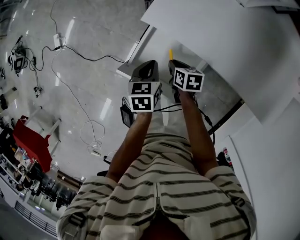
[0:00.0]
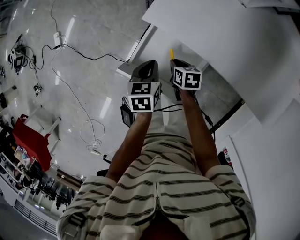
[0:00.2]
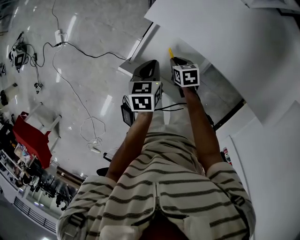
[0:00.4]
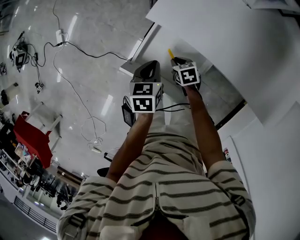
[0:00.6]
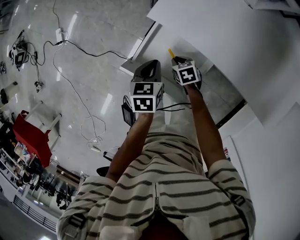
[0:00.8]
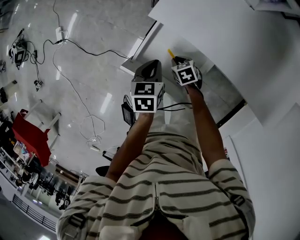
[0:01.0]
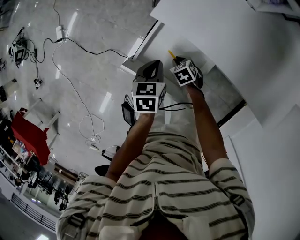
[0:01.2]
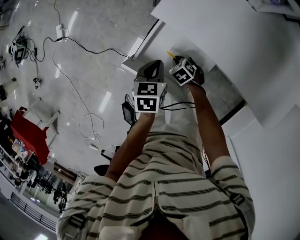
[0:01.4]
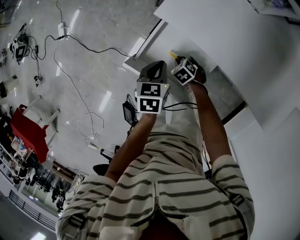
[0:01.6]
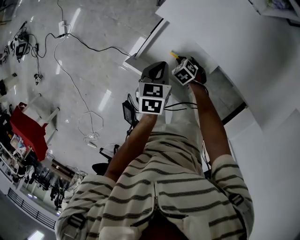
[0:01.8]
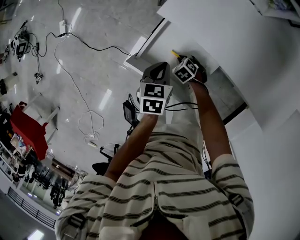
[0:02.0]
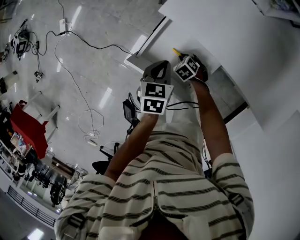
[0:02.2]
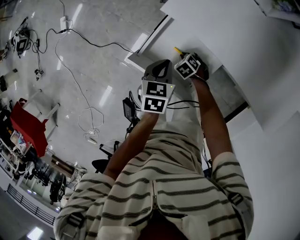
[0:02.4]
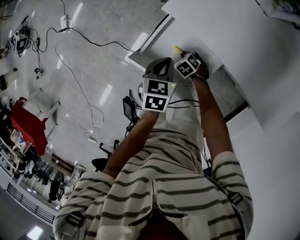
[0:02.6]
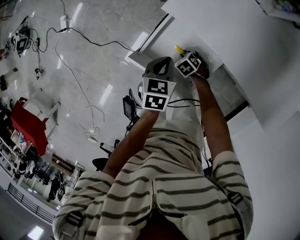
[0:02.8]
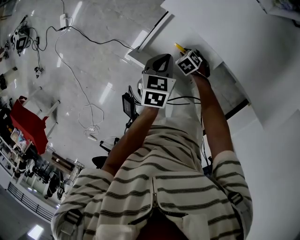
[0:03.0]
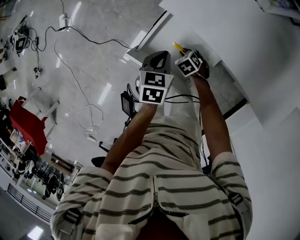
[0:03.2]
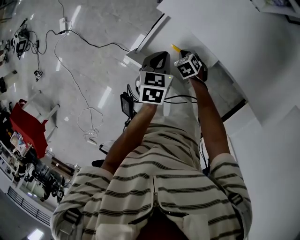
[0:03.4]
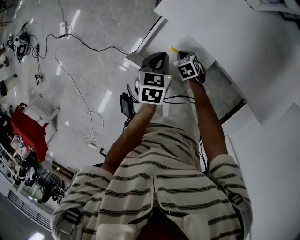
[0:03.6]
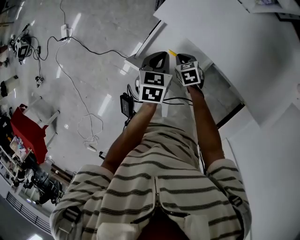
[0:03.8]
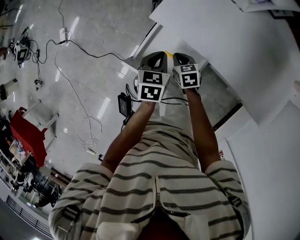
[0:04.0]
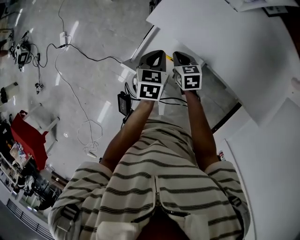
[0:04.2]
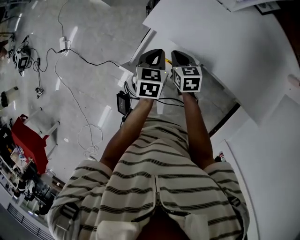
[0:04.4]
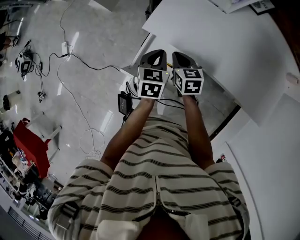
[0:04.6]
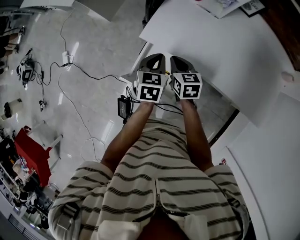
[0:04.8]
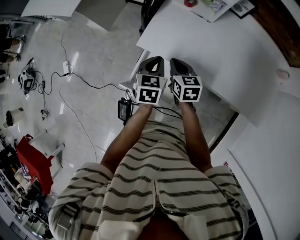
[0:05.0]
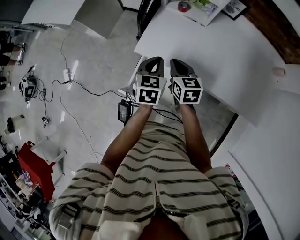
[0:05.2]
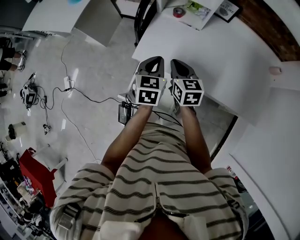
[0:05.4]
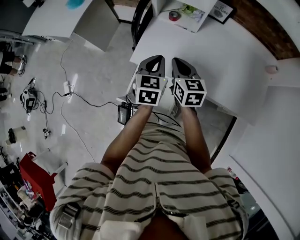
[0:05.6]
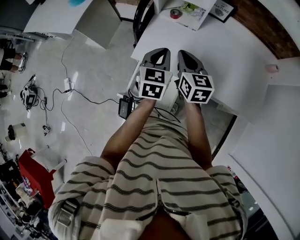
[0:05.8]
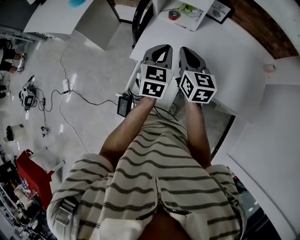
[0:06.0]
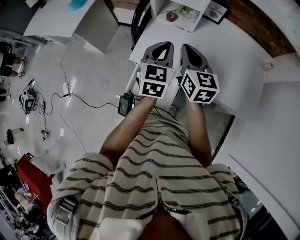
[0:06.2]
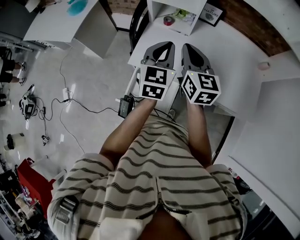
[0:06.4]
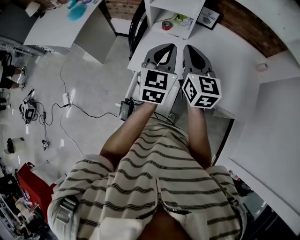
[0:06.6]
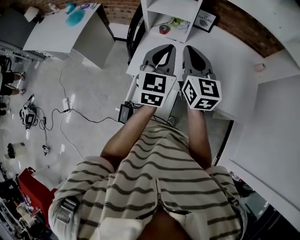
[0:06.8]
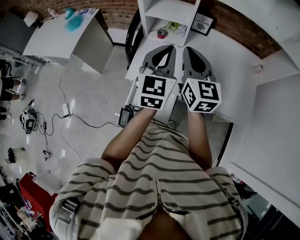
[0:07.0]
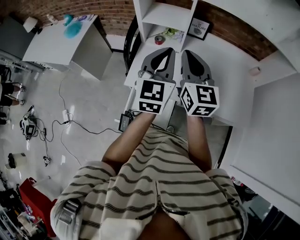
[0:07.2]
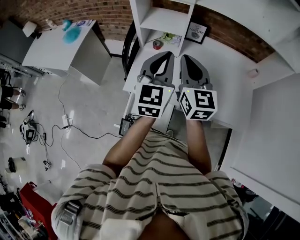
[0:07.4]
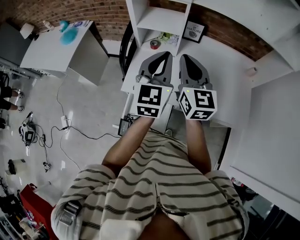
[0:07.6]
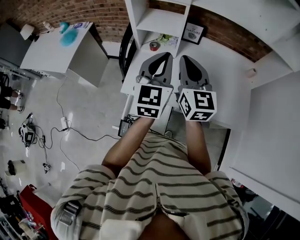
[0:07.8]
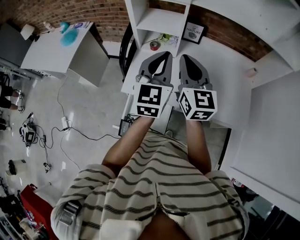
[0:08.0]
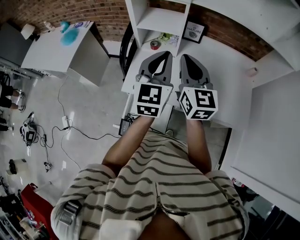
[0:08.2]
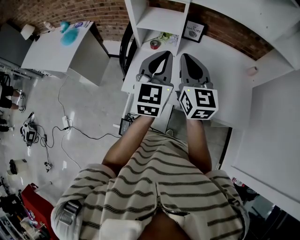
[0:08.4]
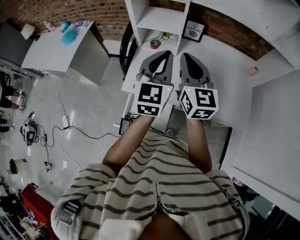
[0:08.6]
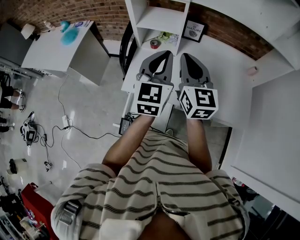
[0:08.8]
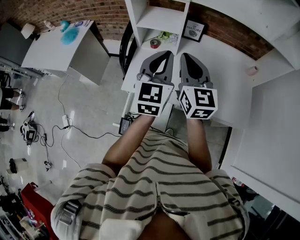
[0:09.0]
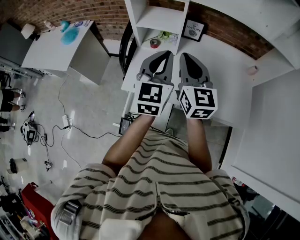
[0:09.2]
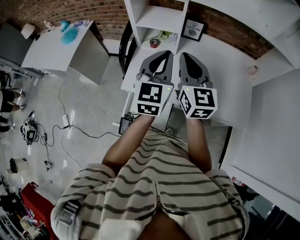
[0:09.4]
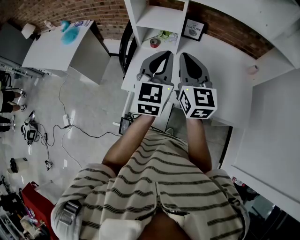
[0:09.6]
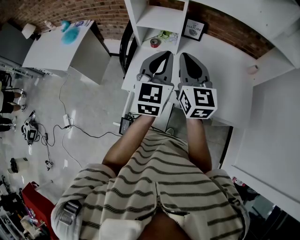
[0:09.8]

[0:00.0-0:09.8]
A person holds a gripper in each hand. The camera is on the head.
0:00.0 to 0:01.4: The right gripper goes roughly 10 cm downward, and twists roughly 50 degrees counterclockwise, seen from behind.
0:01.4 to 0:02.8: The grippers stay close to where they were, moving slightly.
0:02.8 to 0:04.2: The right gripper moves upward, roughly 20 cm, and turns by approximately 50 degrees; the left gripper shifts roughly 5 cm upward.
0:04.2 to 0:05.6: The right gripper is displaced upward by about 25 cm, and turns by some 30 degrees, while the left gripper moves upward and to the right, about 20 cm, and rotates approximately 20 degrees.
0:05.6 to 0:07.0: Both grippers travel together upward, approximately 20 cm. The left gripper turns by some 30 degrees; the right gripper rotates approximately 30 degrees.
0:07.0 to 0:08.4: There are only small adjustments of the grippers.
0:08.4 to 0:09.8: Both grippers stay put.

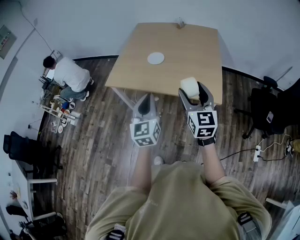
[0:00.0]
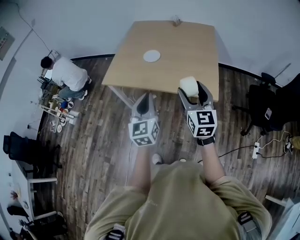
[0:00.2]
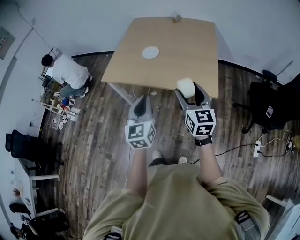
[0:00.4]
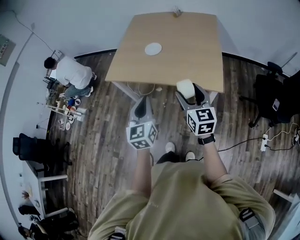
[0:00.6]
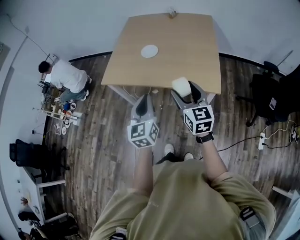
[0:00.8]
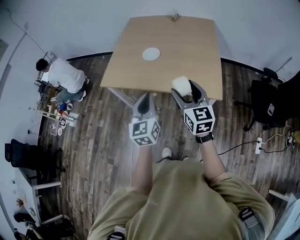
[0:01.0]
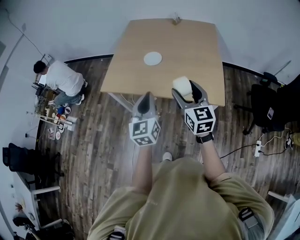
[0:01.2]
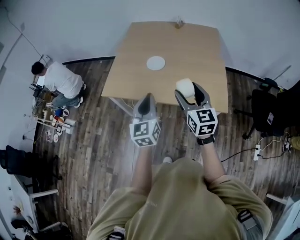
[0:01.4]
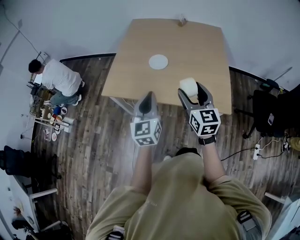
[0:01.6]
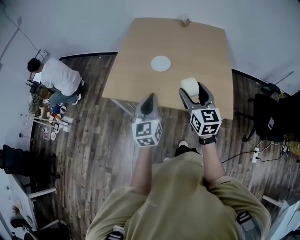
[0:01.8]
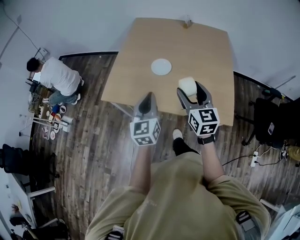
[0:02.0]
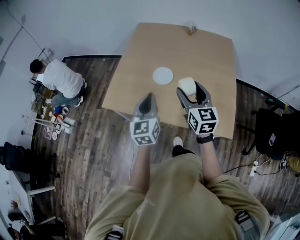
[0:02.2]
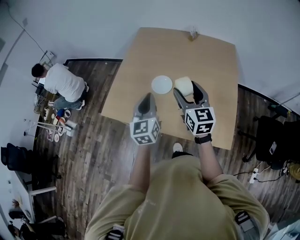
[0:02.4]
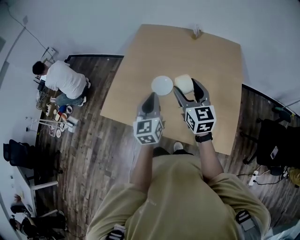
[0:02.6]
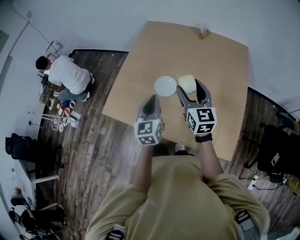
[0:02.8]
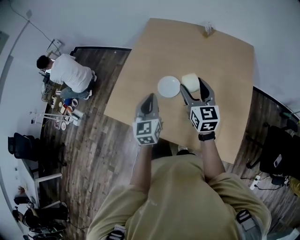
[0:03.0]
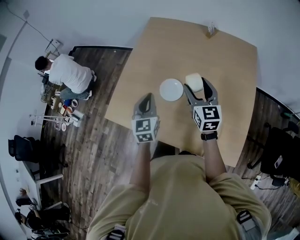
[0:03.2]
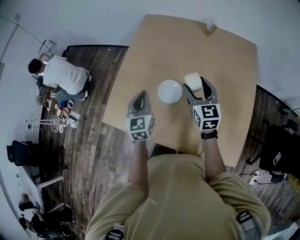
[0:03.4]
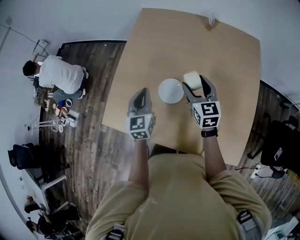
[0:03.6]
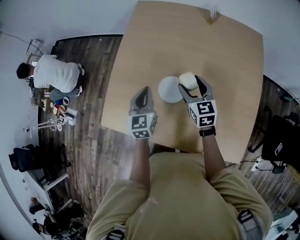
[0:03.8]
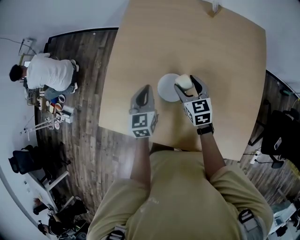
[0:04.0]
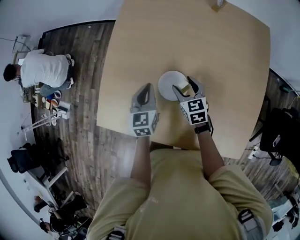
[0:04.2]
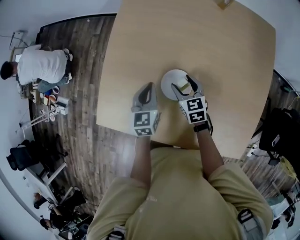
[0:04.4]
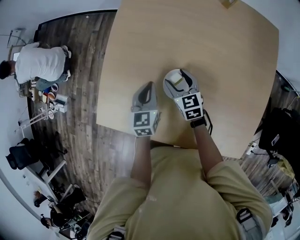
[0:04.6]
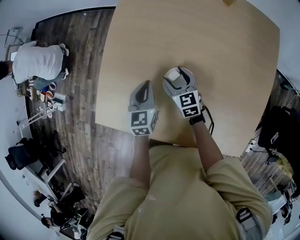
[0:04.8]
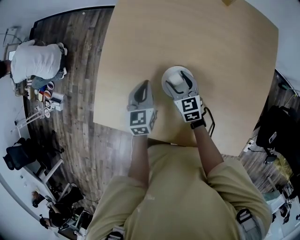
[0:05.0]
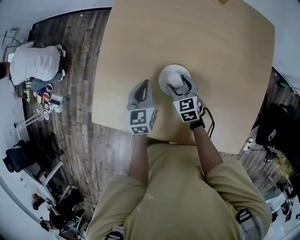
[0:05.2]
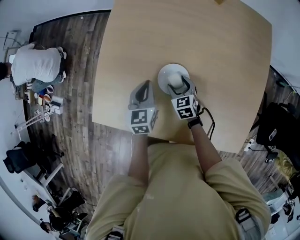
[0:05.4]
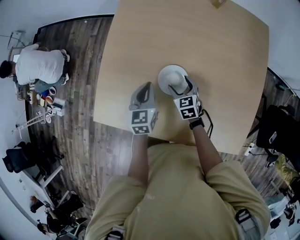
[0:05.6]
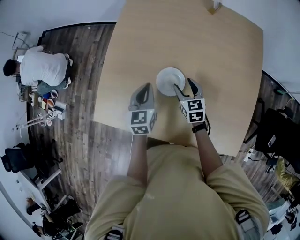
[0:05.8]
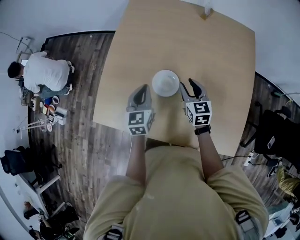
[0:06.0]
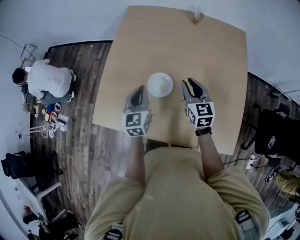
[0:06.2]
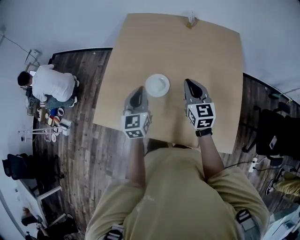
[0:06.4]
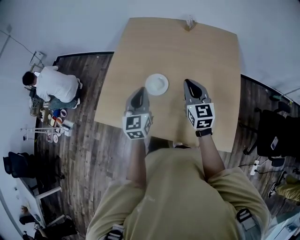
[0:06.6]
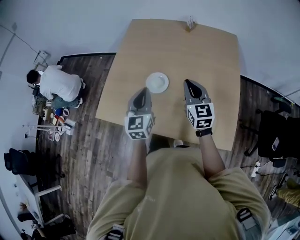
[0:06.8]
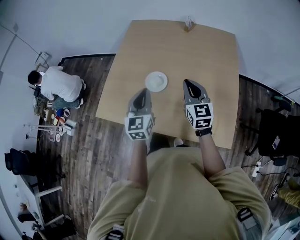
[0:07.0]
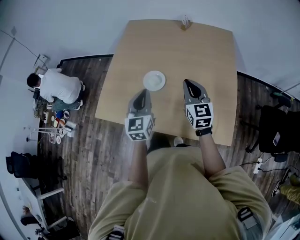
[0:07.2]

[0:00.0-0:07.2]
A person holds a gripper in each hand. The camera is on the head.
0:00.0 to 0:01.4: The left gripper is displaced forward by roughly 15 cm; the right gripper heads forward and to the left, covering about 15 cm.
0:01.4 to 0:02.8: The grippers both shift forward by some 35 cm.
0:02.8 to 0:04.4: The right gripper shifts about 35 cm downward and forward, and angles its fingers downward, by approximately 30 degrees, while the left gripper shifts roughly 30 cm forward and downward, and turns by about 20 degrees.
0:04.4 to 0:05.8: The left gripper shifts by some 5 cm, while the right gripper moves roughly 5 cm downward and comes back.
0:05.8 to 0:07.2: The left gripper shifts about 25 cm backward, upward and to the right, and swivels about 20 degrees, while the right gripper goes approximately 30 cm upward, backward and to the right, changes its angle by about 30 degrees, and closes up.

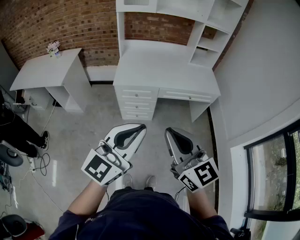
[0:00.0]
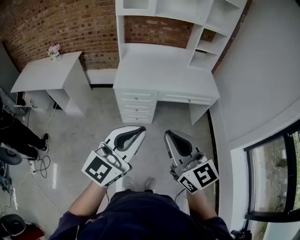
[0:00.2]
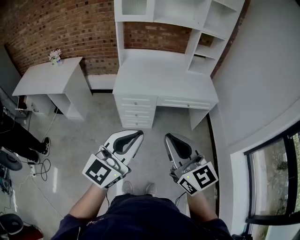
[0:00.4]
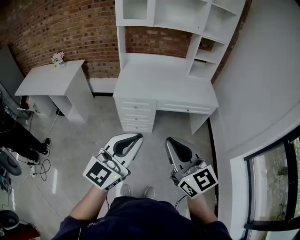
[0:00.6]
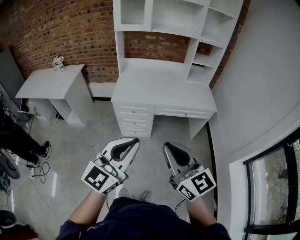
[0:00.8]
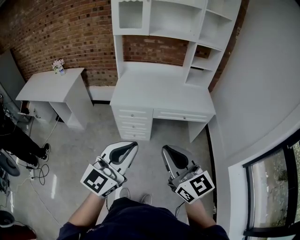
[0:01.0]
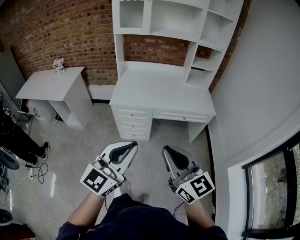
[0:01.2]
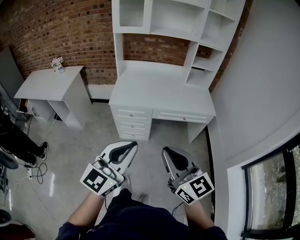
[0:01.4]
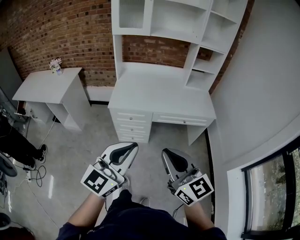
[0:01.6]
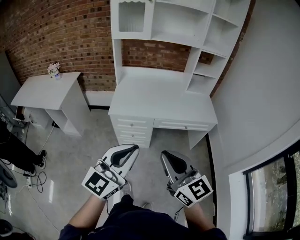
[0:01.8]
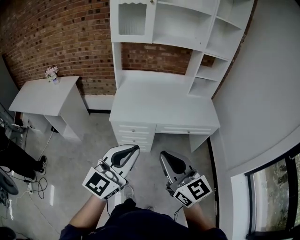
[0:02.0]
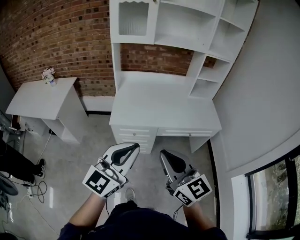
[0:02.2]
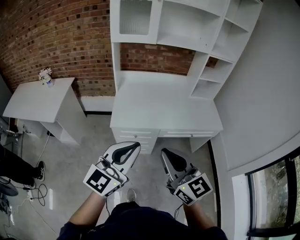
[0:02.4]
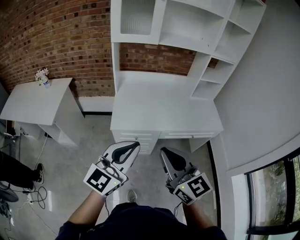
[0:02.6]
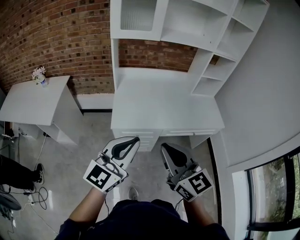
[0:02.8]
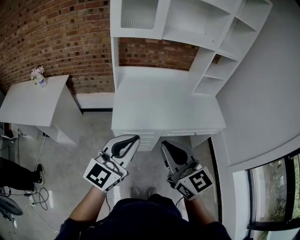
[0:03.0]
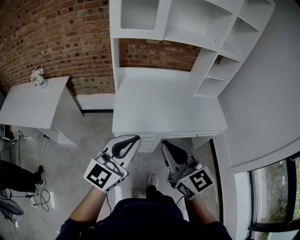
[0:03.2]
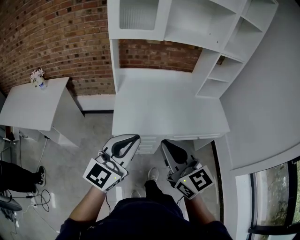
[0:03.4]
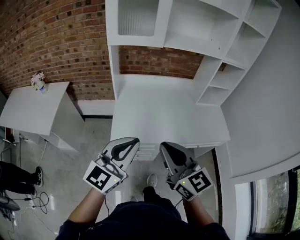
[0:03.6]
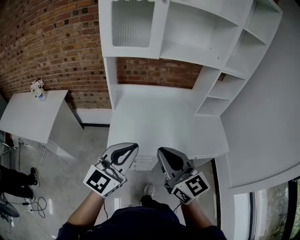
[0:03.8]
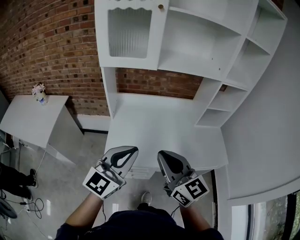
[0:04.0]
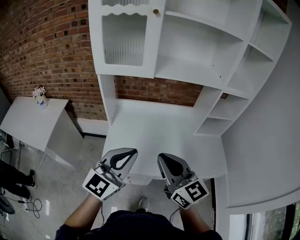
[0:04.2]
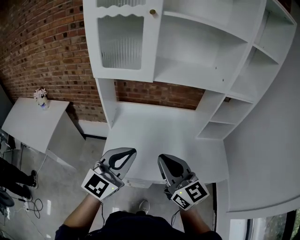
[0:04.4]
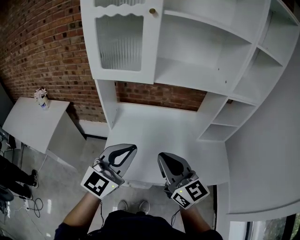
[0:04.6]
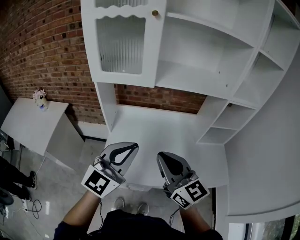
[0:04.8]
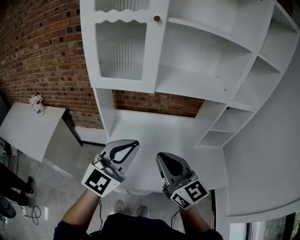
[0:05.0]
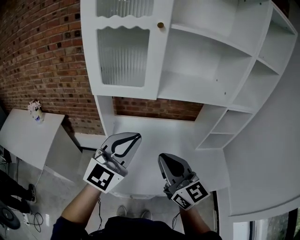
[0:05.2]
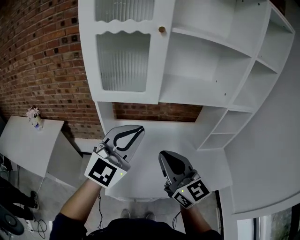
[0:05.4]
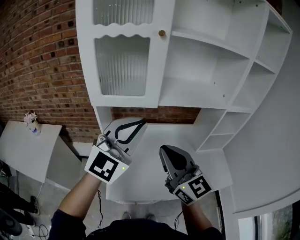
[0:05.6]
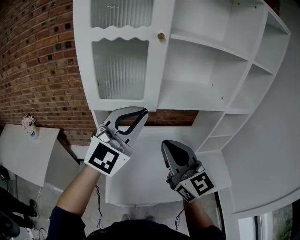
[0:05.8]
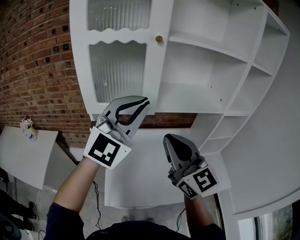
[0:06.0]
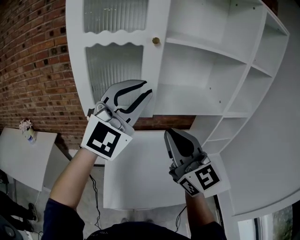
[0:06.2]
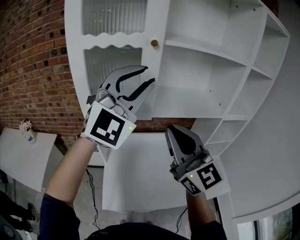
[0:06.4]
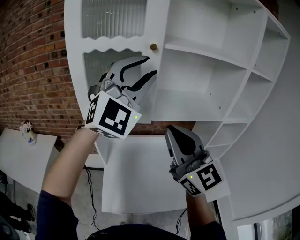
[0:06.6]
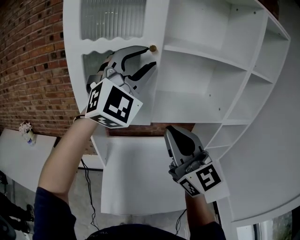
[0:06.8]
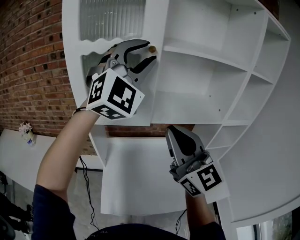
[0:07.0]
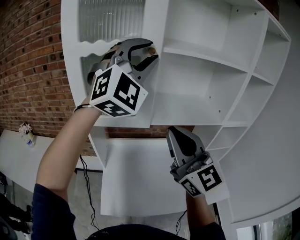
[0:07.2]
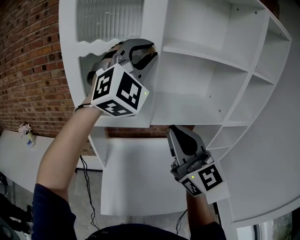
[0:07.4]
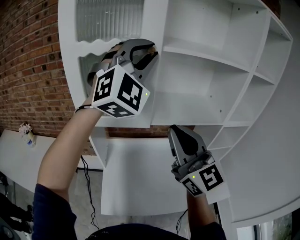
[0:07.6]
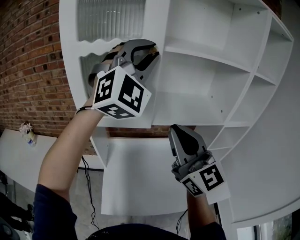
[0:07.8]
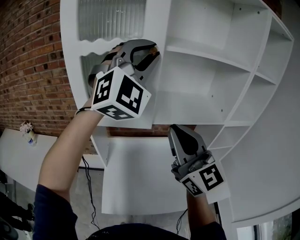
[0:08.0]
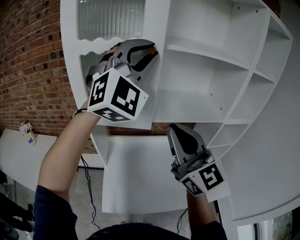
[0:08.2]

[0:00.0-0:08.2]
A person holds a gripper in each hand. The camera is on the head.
0:00.0 to 0:01.6: The right gripper goes about 5 cm to the right, while the left gripper changes place by roughly 5 cm.
0:01.6 to 0:03.2: The grippers both shift forward and to the left by roughly 30 cm.
0:03.2 to 0:05.0: The grippers both shift forward by about 30 cm.
0:05.0 to 0:06.6: The right gripper moves upward and forward, about 20 cm, and swivels about 20 degrees. Meanwhile the left gripper travels upward and forward by roughly 30 cm, rolls clockwise, seen from behind, by about 40 degrees, and opens.
0:06.6 to 0:08.2: The left gripper changes place by about 5 cm.
